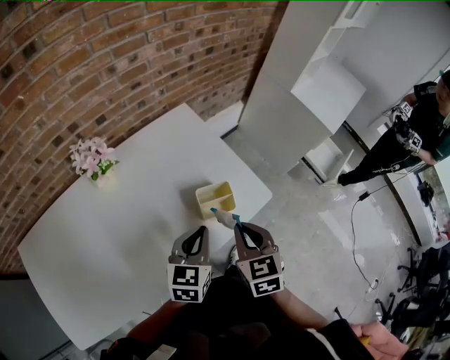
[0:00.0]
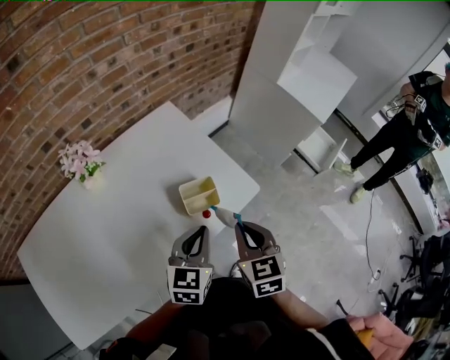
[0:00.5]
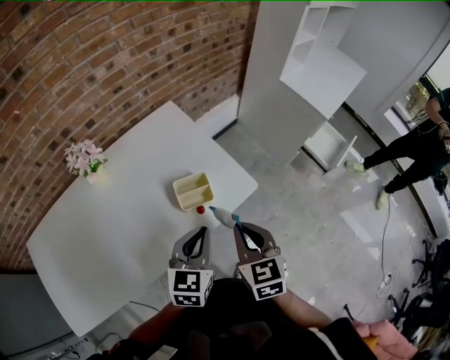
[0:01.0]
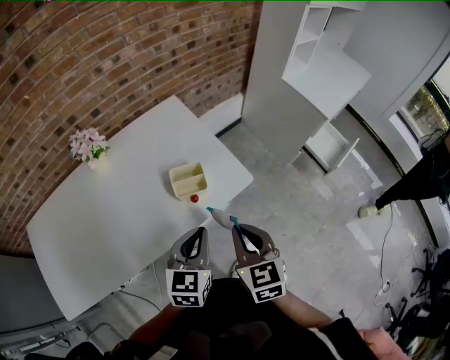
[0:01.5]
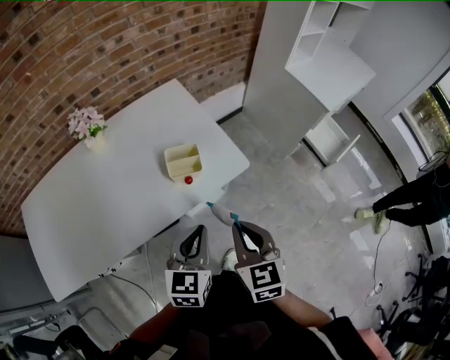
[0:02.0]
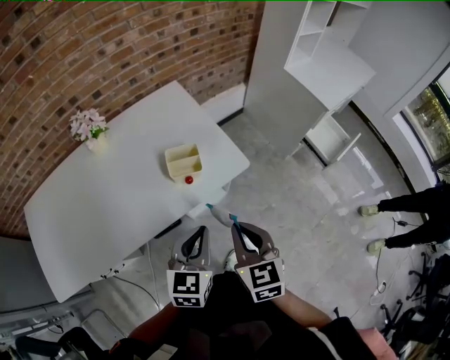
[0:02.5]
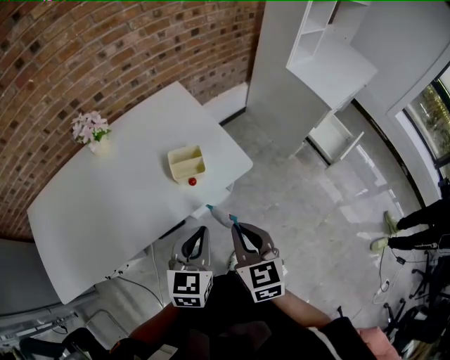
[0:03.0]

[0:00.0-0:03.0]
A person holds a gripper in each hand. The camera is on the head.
0:00.0 to 0:01.5: The two grippers go approximately 15 cm to the right and backward.
0:01.5 to 0:03.0: The left gripper shifts by roughly 5 cm.

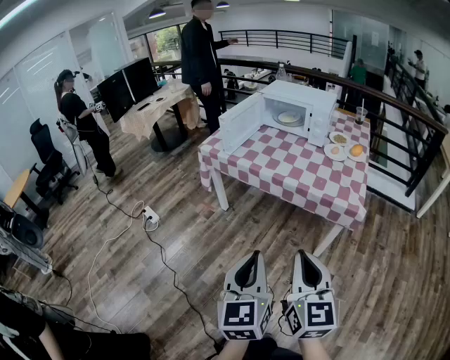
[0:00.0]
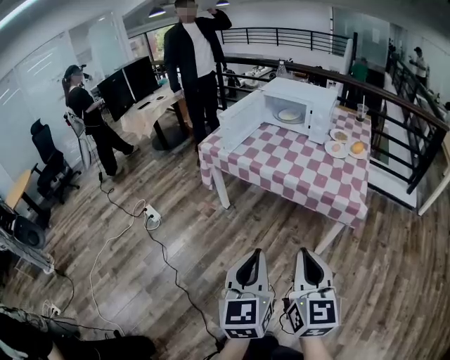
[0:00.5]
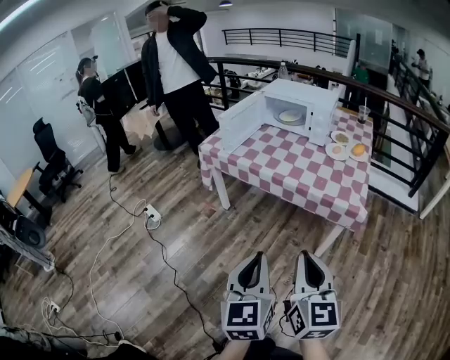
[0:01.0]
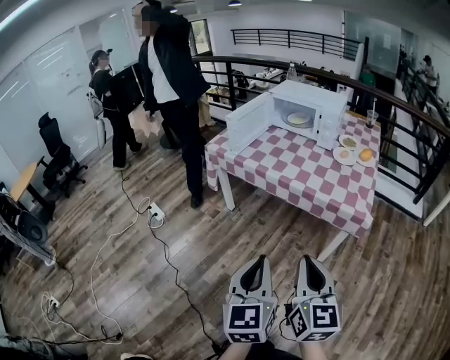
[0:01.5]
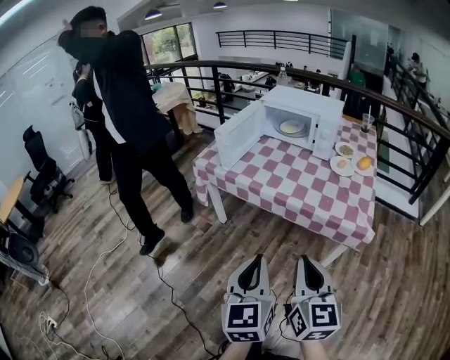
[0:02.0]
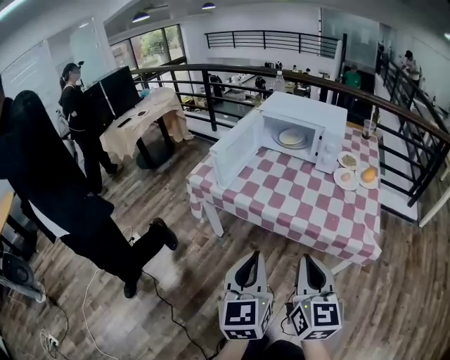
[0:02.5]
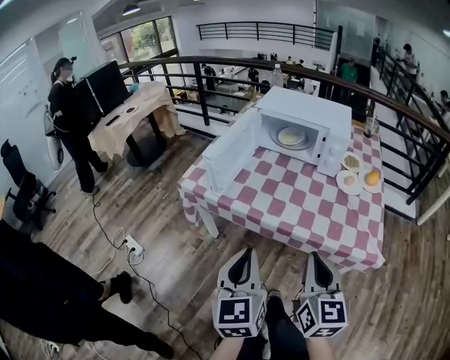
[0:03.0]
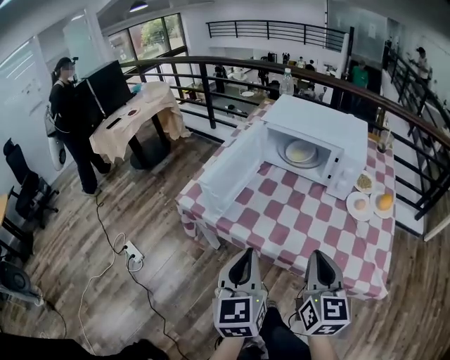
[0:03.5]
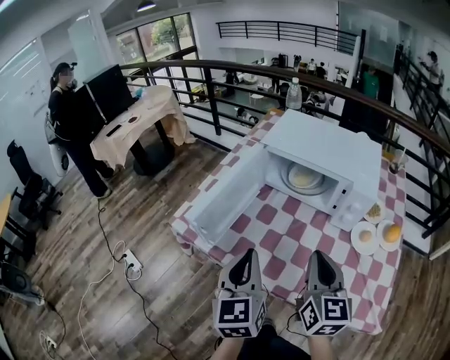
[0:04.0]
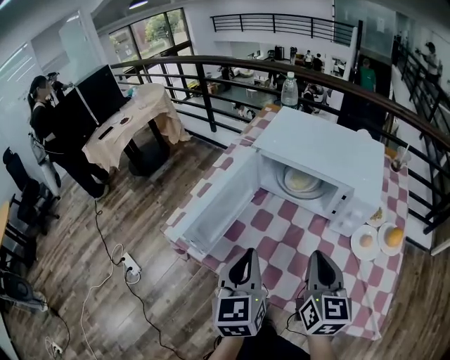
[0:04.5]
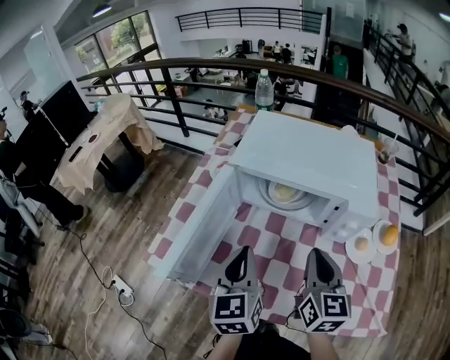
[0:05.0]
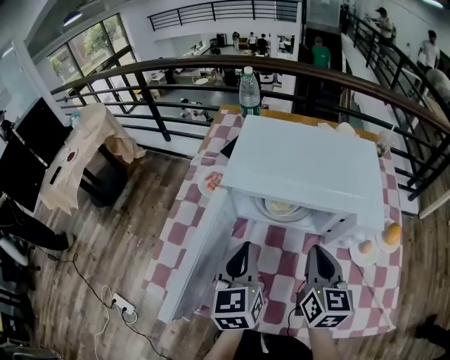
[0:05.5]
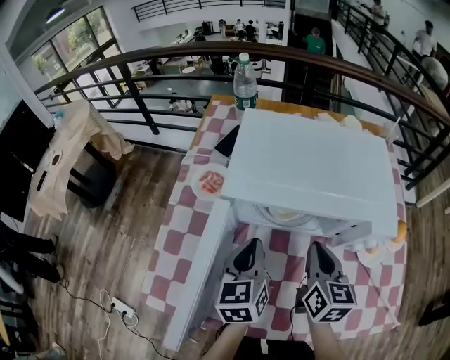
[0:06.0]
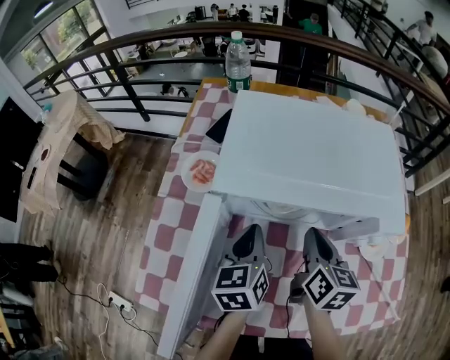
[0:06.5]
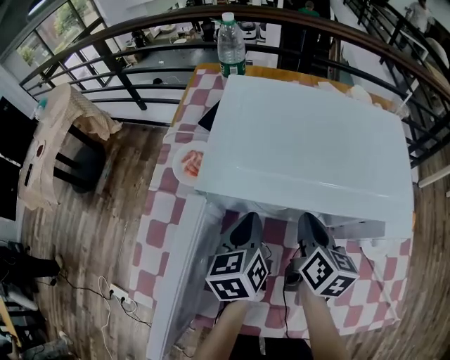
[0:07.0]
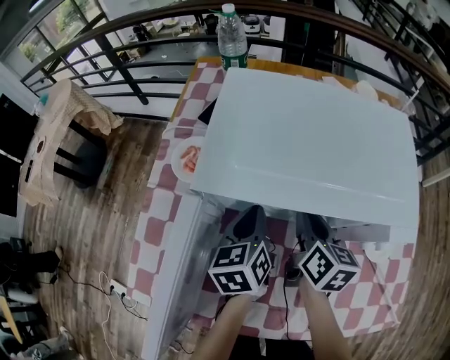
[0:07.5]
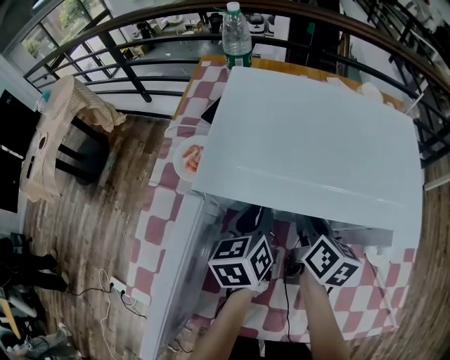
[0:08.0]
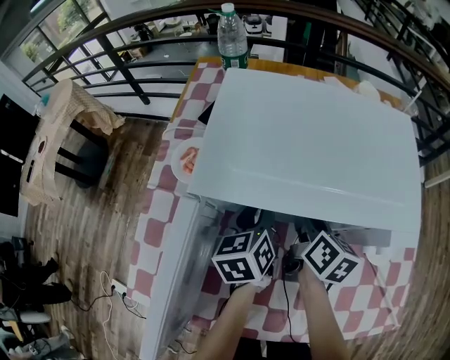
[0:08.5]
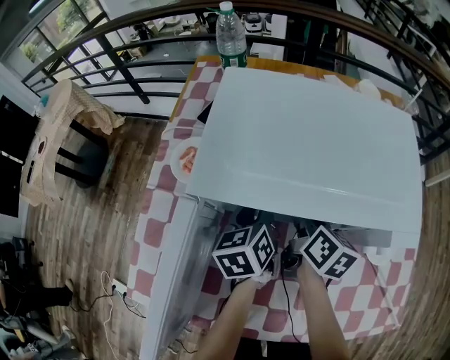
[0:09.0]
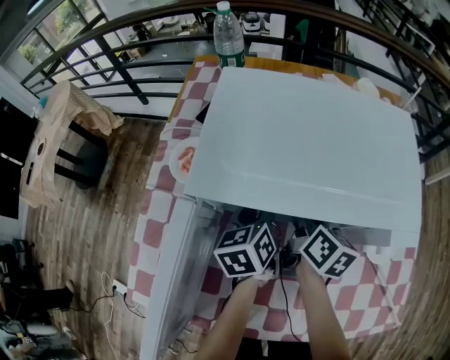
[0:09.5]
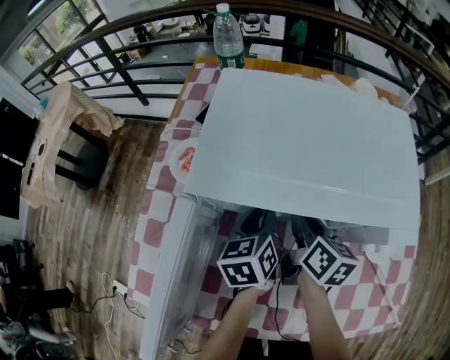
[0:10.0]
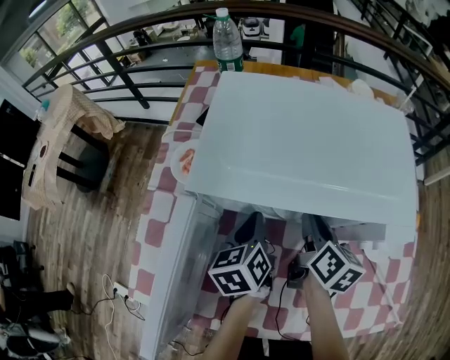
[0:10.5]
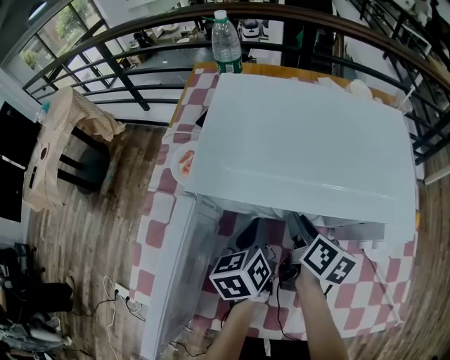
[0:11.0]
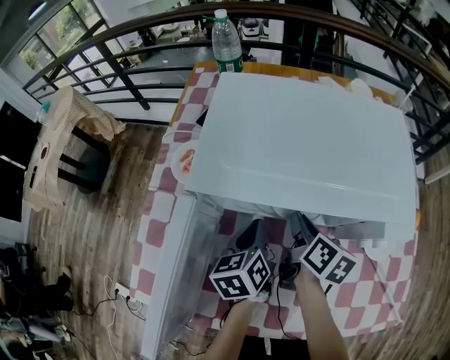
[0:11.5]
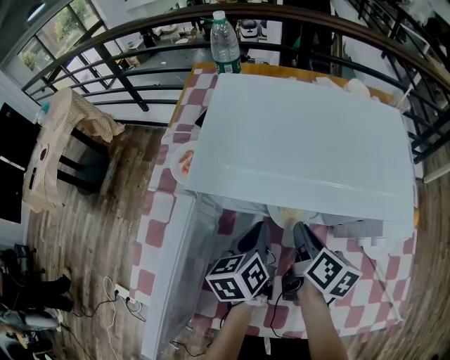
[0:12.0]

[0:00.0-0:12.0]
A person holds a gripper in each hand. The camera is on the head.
0:00.0 to 0:02.0: The grippers both shift forward by some 10 cm.
0:02.0 to 0:04.0: The two grippers travel together, forward, some 40 cm.
0:04.0 to 0:06.0: The two grippers go about 25 cm forward. The right gripper turns by some 30 degrees. The left gripper rotates some 30 degrees.
0:06.0 to 0:08.0: Both grippers travel together forward and downward, about 10 cm. The right gripper swivels about 20 degrees, and opens.
0:08.0 to 0:10.0: The grippers move only a little.
0:10.0 to 0:12.0: The right gripper is displaced backward by some 5 cm.

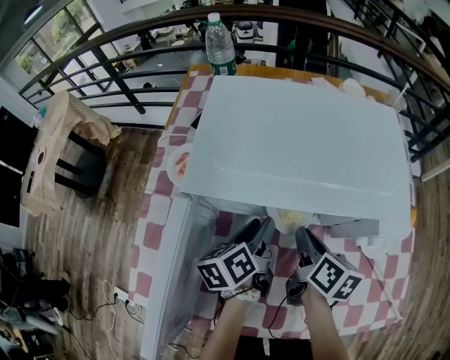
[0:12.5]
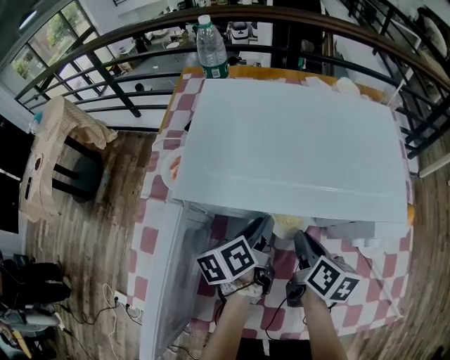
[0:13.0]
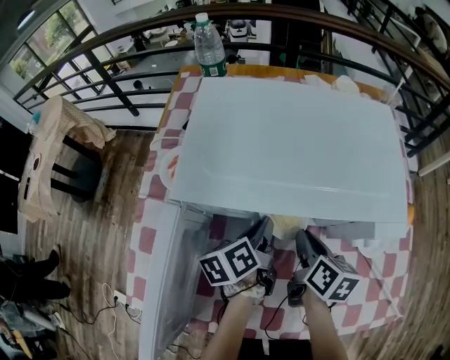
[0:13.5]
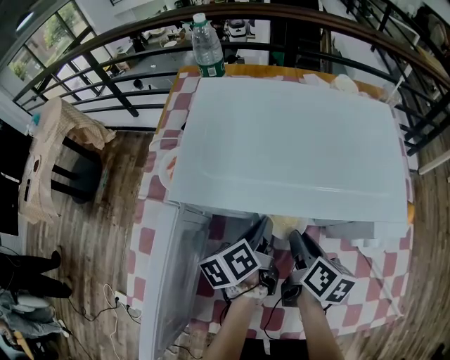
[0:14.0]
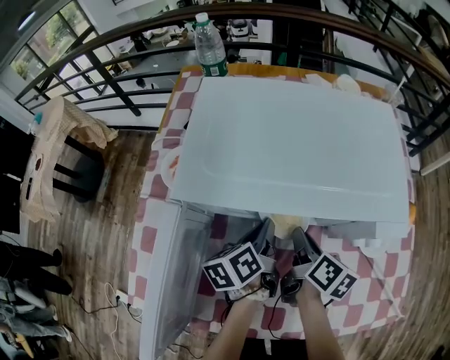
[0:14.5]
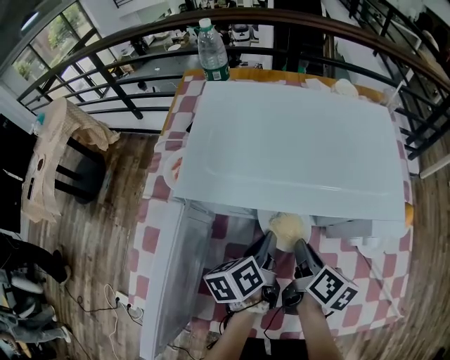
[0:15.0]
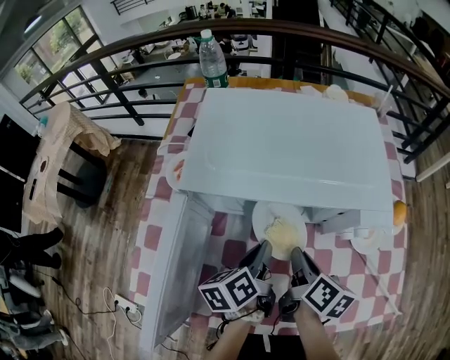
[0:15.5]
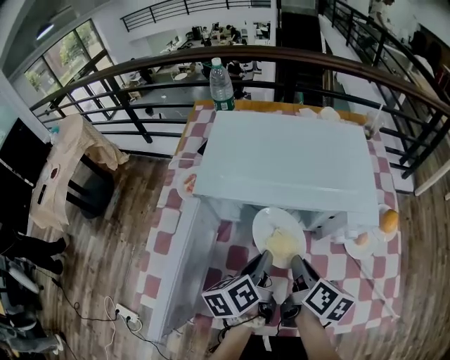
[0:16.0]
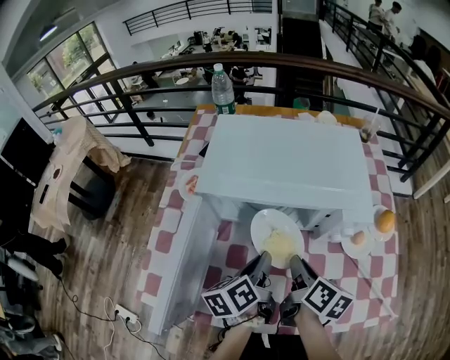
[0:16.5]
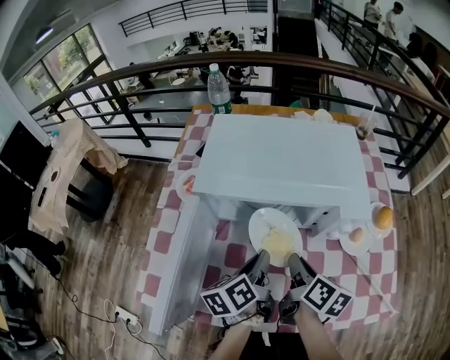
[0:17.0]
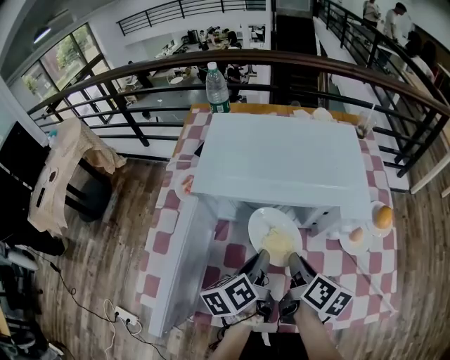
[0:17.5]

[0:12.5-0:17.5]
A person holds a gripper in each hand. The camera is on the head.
0:12.5 to 0:15.0: The left gripper closes its fingers.
0:15.0 to 0:17.5: The right gripper goes roughly 10 cm upward and backward, while the left gripper is displaced backward and upward by roughly 10 cm.

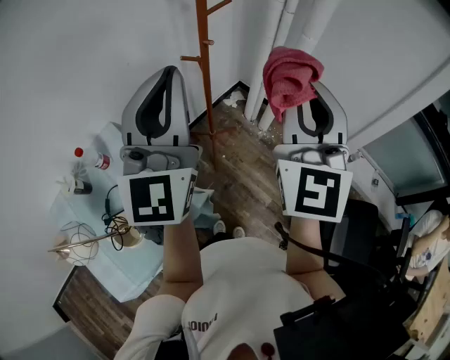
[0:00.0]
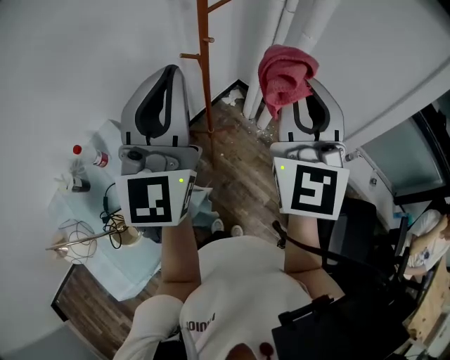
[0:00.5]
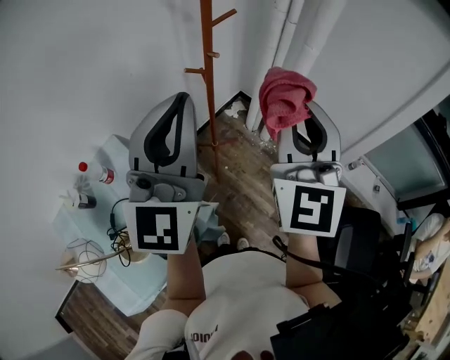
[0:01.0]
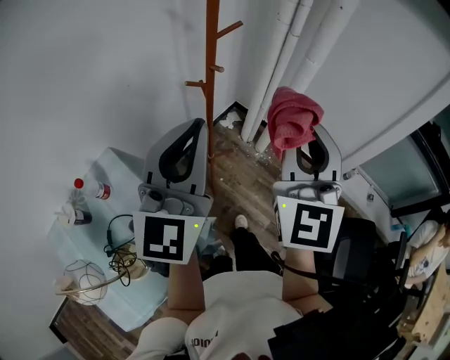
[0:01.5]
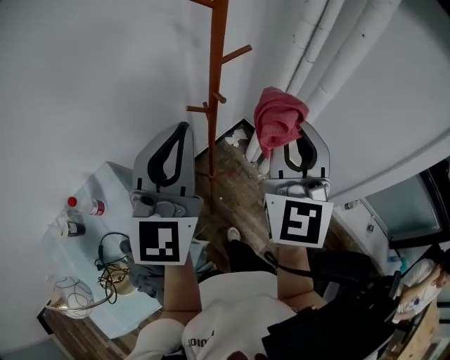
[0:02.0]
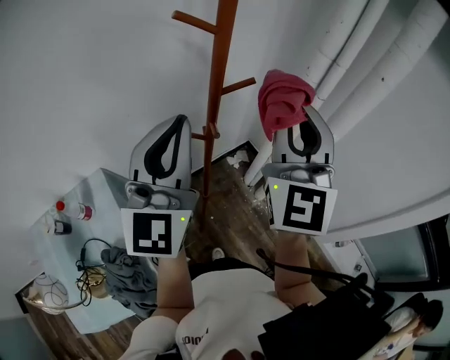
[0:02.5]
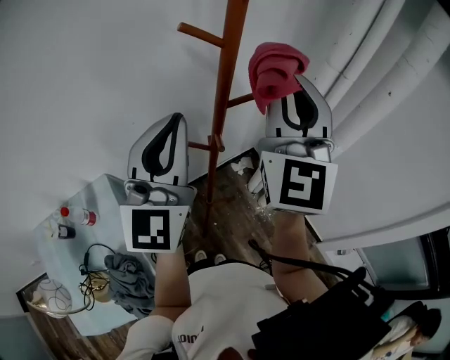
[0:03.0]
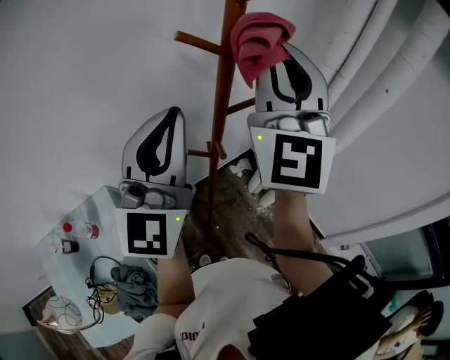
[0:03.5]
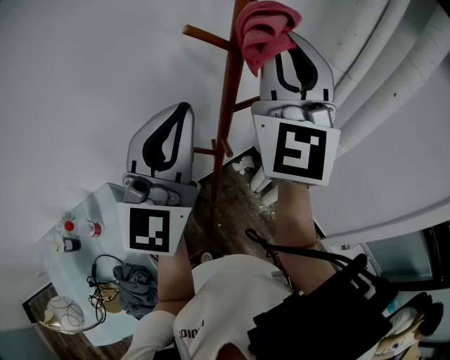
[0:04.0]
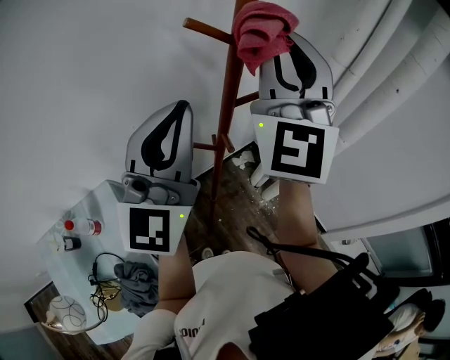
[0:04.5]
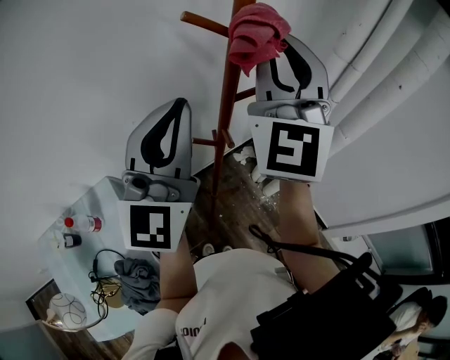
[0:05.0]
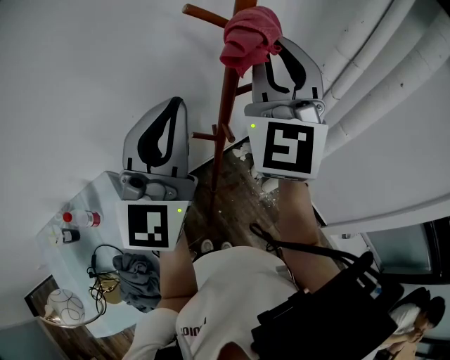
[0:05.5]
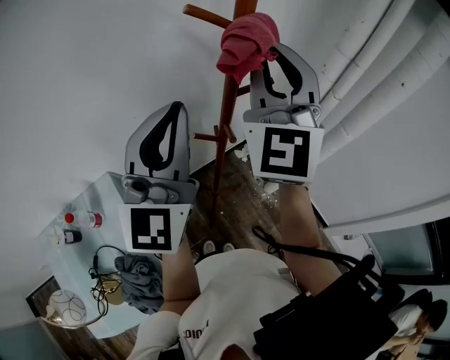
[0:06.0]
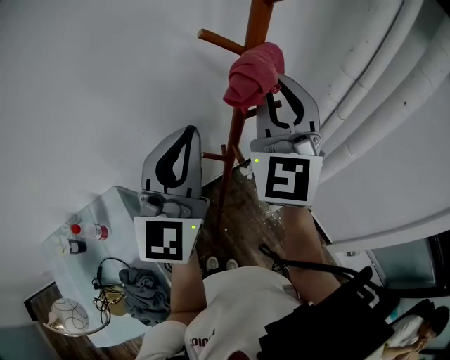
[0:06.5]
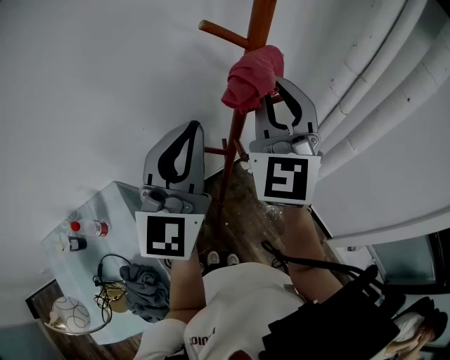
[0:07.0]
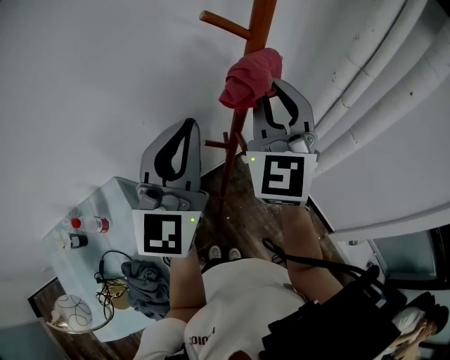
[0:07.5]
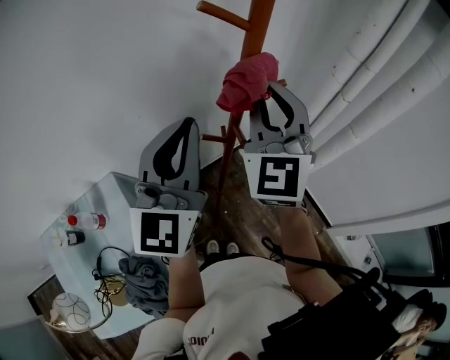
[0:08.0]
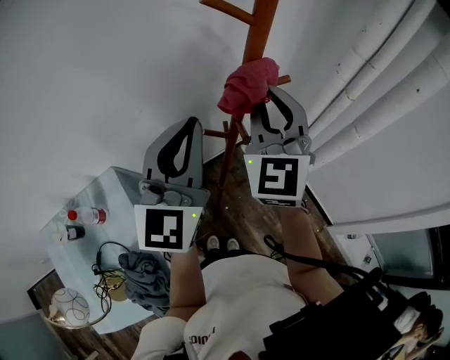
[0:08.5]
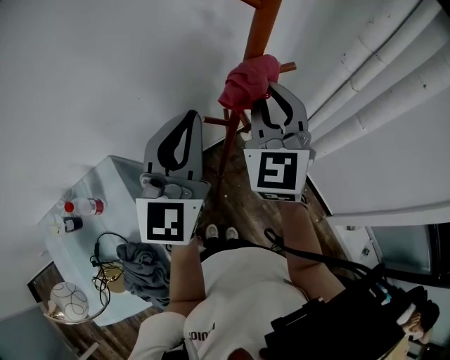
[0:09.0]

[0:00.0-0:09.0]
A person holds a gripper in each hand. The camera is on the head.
0:00.0 to 0:02.0: Both grippers move forward, approximately 10 cm.
0:02.0 to 0:04.5: The left gripper is displaced forward and upward by roughly 15 cm. Meanwhile the right gripper heads forward and upward, covering approximately 25 cm, and rotates roughly 20 degrees.
0:04.5 to 0:07.0: The right gripper shifts about 10 cm downward.
0:07.0 to 0:09.0: The left gripper heads downward, covering some 5 cm. The right gripper travels downward by roughly 10 cm.
